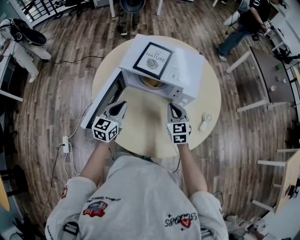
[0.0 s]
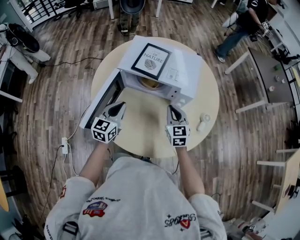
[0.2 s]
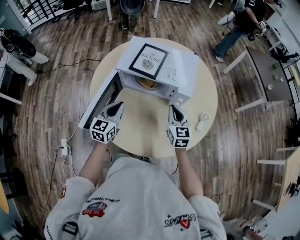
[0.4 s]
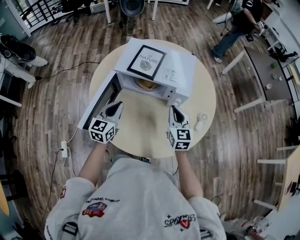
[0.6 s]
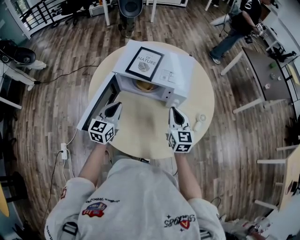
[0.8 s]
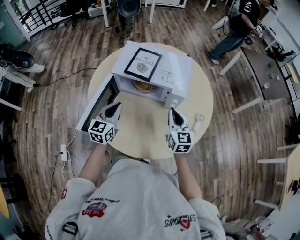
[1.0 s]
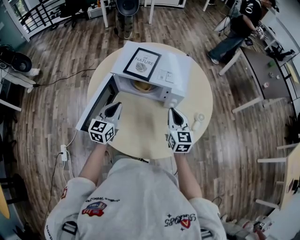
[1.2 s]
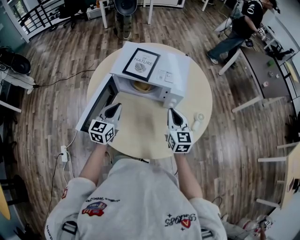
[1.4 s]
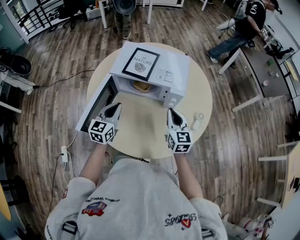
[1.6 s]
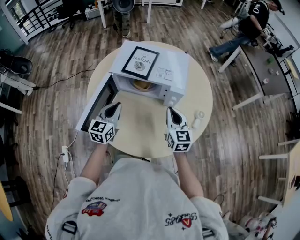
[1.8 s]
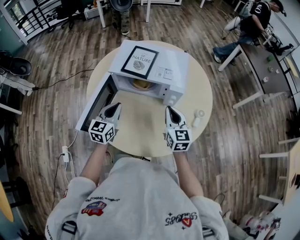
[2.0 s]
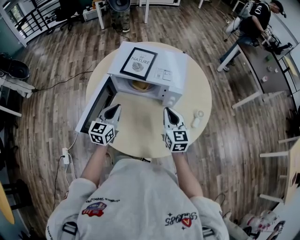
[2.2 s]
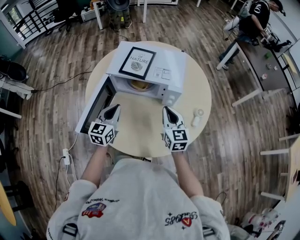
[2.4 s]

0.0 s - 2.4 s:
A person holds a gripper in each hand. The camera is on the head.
0.0 s - 1.2 s: The right gripper travels upward and to the right by about 10 cm.
1.2 s - 2.4 s: There are only small adjustments of the grippers.

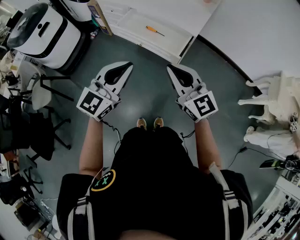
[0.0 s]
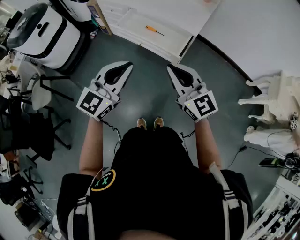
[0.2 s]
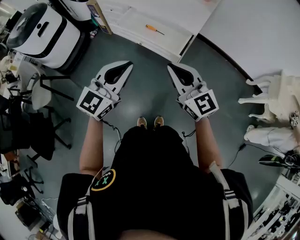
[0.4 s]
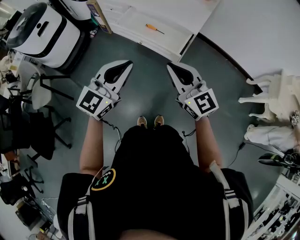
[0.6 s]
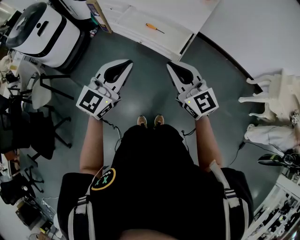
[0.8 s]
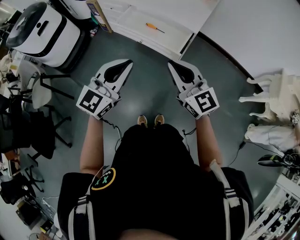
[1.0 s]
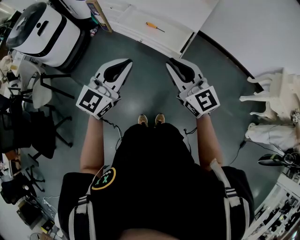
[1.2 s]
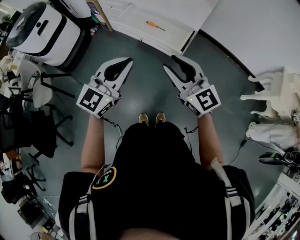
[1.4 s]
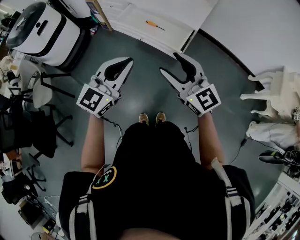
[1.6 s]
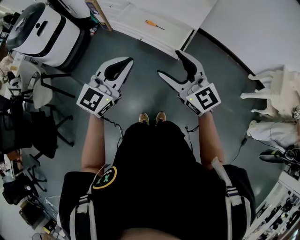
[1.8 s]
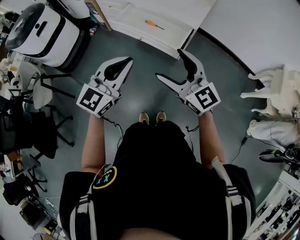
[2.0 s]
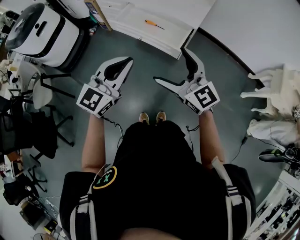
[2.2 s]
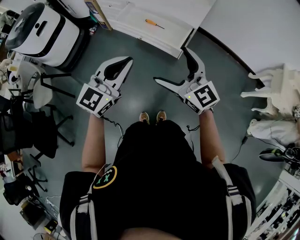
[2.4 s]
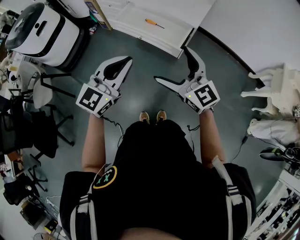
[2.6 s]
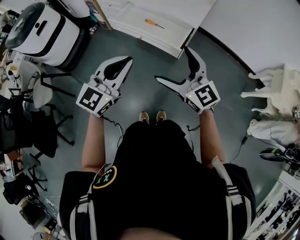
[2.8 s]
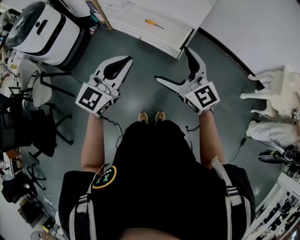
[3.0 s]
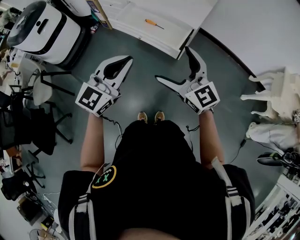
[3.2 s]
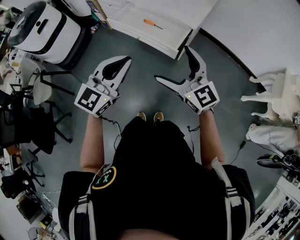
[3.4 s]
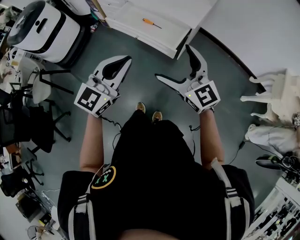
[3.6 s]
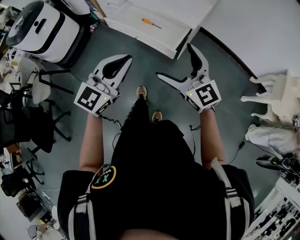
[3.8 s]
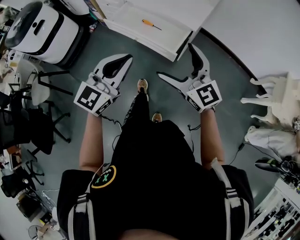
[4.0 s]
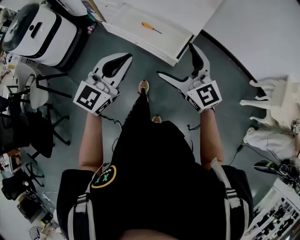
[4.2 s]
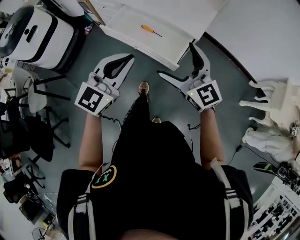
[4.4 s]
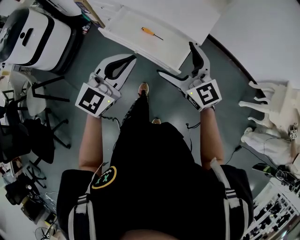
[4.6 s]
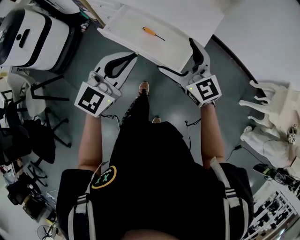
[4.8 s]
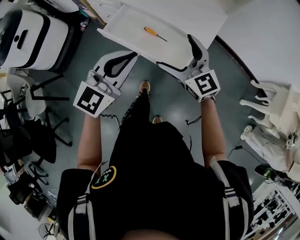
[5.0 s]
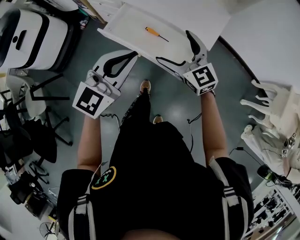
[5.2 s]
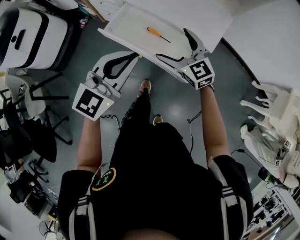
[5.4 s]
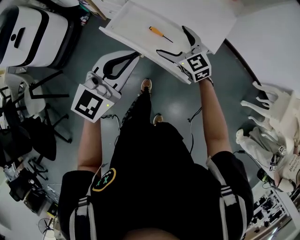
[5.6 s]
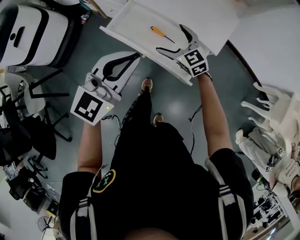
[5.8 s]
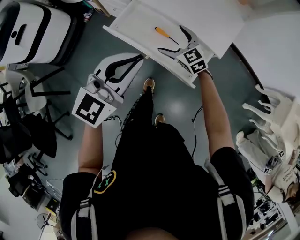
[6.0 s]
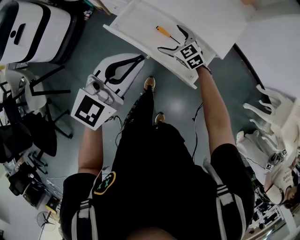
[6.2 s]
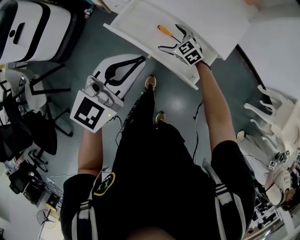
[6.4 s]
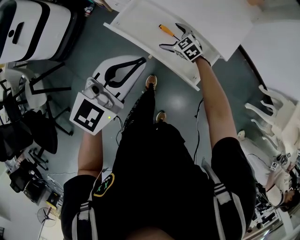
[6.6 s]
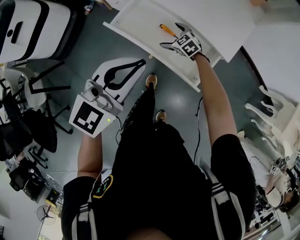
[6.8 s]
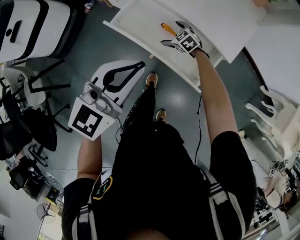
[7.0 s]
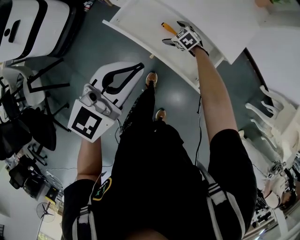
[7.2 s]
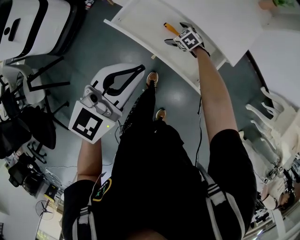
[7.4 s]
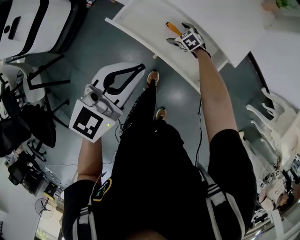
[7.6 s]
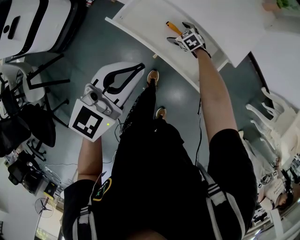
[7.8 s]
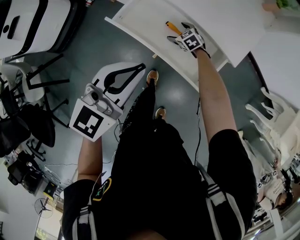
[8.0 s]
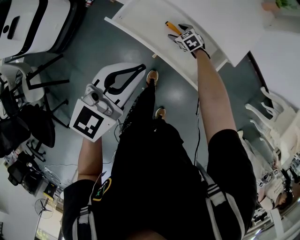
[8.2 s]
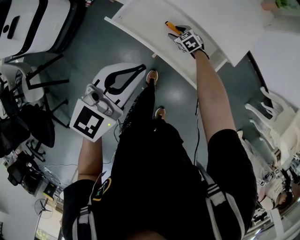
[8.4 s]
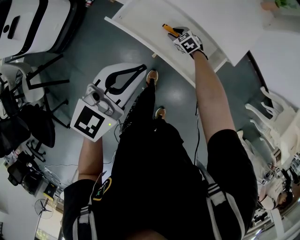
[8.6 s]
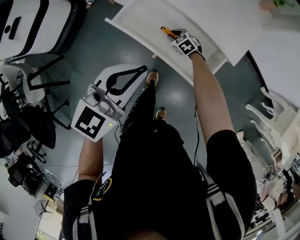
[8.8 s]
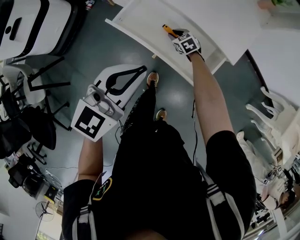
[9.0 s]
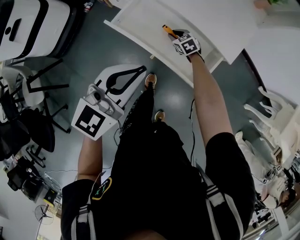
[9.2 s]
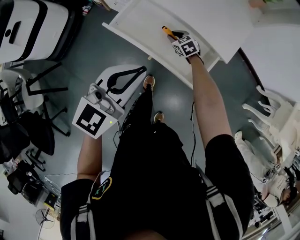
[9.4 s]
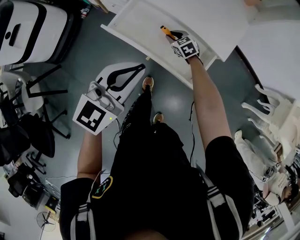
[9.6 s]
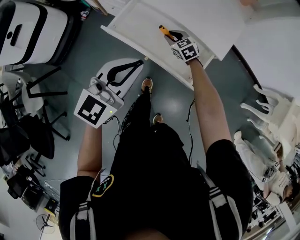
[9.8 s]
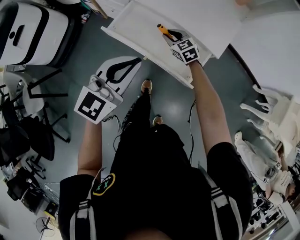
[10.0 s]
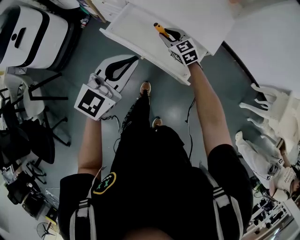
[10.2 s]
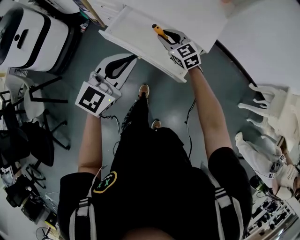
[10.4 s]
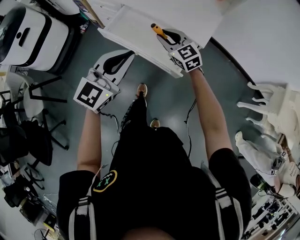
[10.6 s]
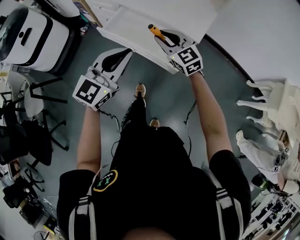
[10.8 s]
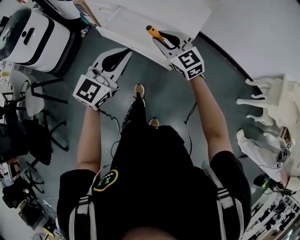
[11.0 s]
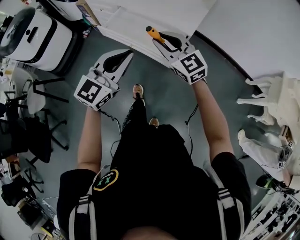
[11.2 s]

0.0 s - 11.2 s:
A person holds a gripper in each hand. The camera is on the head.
0.0 s - 1.6 s: The right gripper opens.
1.6 s - 3.2 s: The right gripper opens up.
3.2 s - 4.8 s: Both grippers move forward, about 25 cm.
4.8 s - 6.4 s: The right gripper heads downward and forward, covering some 35 cm, and points its fingers roughly 30 degrees further downward. Meanwhile the left gripper is displaced forward by about 10 cm.
6.4 s - 8.0 s: The right gripper is displaced downward by about 15 cm. The left gripper heads downward, covering some 5 cm.
8.0 s - 9.6 s: The right gripper moves upward, about 10 cm, and closes its fingers.
9.6 s - 11.2 s: The right gripper is displaced upward and backward by roughly 50 cm, and tips its fingers upward by some 40 degrees; the left gripper is displaced backward by some 20 cm.

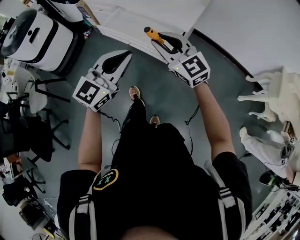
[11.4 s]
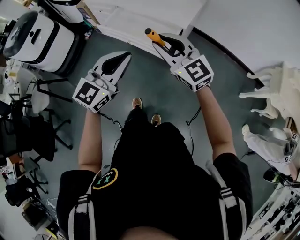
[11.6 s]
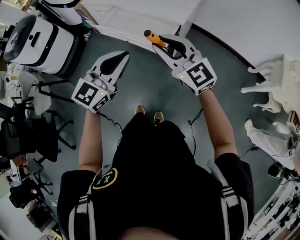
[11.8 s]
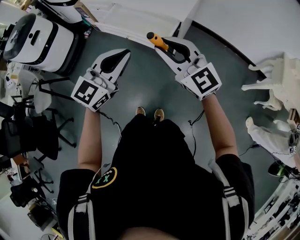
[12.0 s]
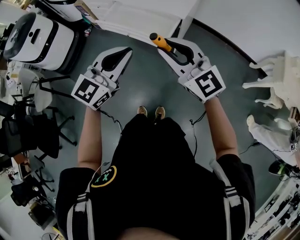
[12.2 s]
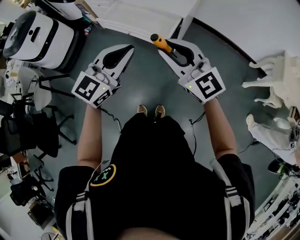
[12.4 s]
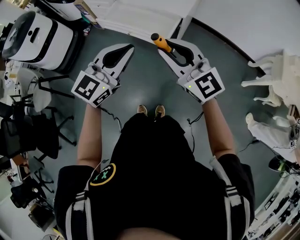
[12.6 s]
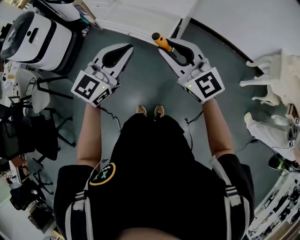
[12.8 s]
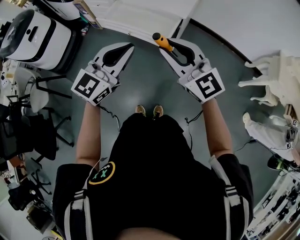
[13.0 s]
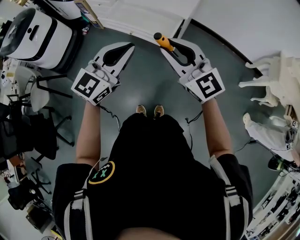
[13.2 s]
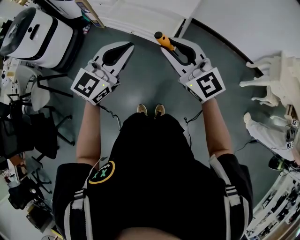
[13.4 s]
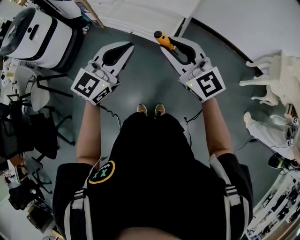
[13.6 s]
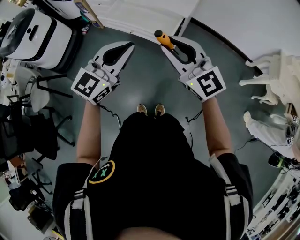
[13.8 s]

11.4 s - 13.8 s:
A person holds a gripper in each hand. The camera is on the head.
11.4 s - 12.6 s: The right gripper is displaced backward by about 15 cm. The left gripper shifts about 5 cm backward.
12.6 s - 13.8 s: The grippers stay close to where they were, moving slightly.

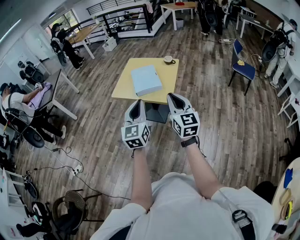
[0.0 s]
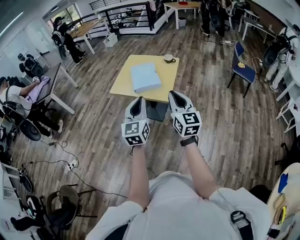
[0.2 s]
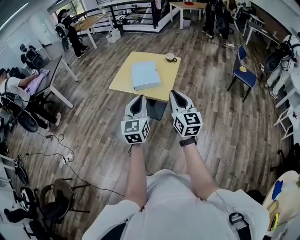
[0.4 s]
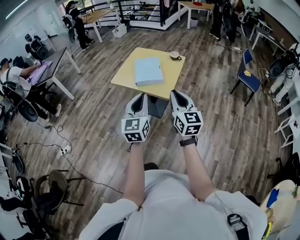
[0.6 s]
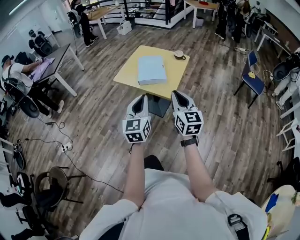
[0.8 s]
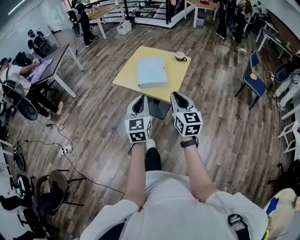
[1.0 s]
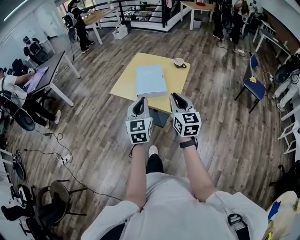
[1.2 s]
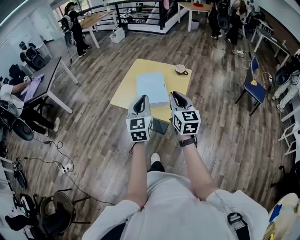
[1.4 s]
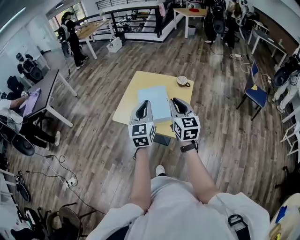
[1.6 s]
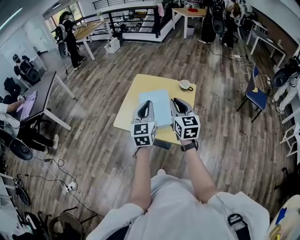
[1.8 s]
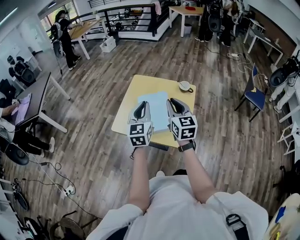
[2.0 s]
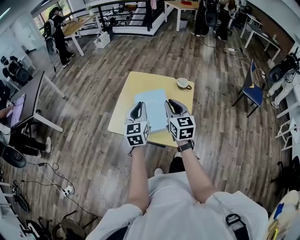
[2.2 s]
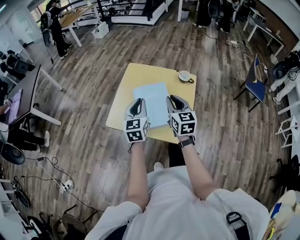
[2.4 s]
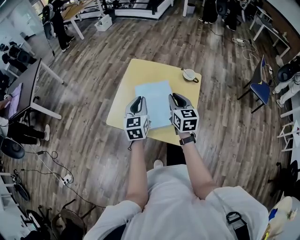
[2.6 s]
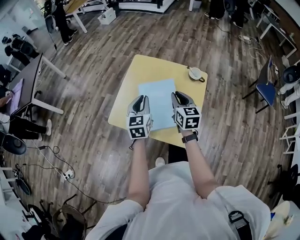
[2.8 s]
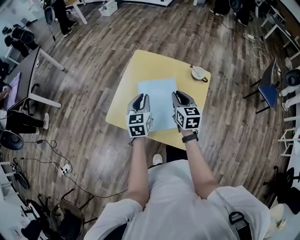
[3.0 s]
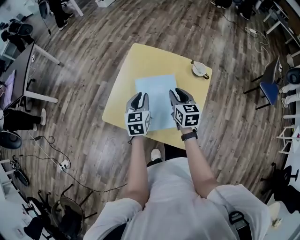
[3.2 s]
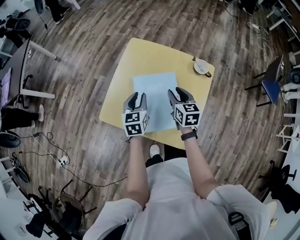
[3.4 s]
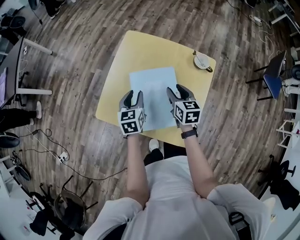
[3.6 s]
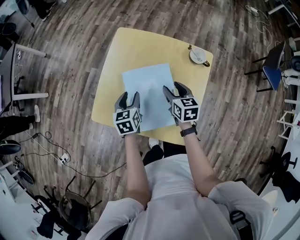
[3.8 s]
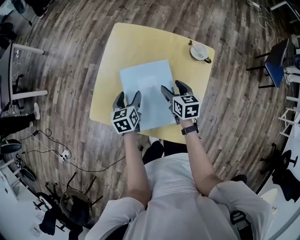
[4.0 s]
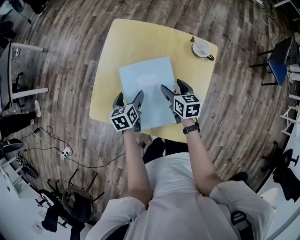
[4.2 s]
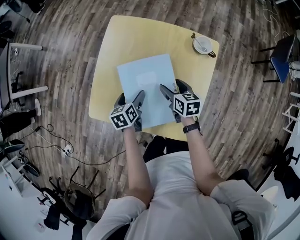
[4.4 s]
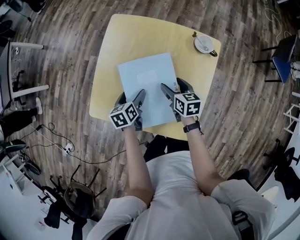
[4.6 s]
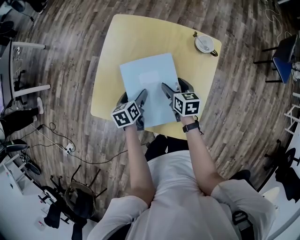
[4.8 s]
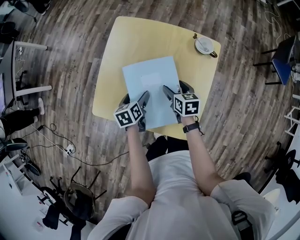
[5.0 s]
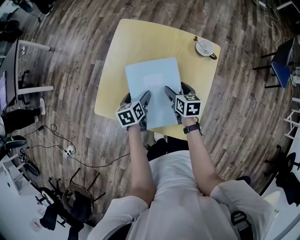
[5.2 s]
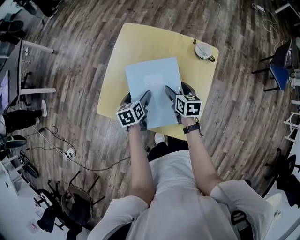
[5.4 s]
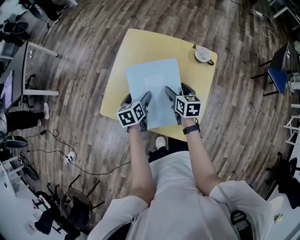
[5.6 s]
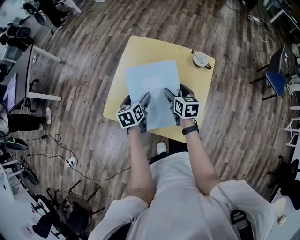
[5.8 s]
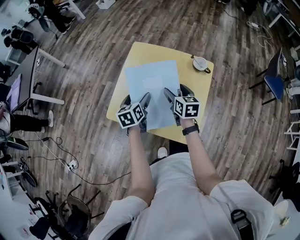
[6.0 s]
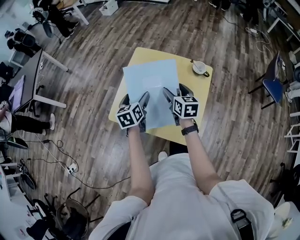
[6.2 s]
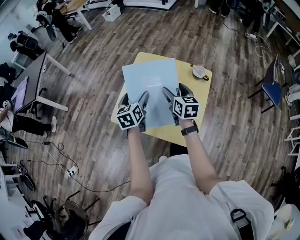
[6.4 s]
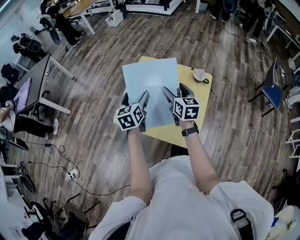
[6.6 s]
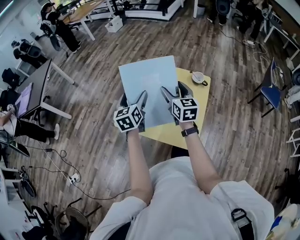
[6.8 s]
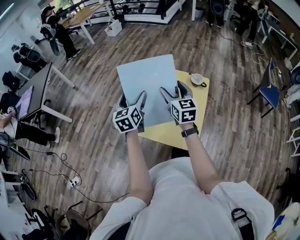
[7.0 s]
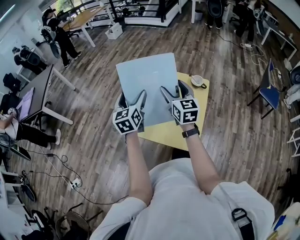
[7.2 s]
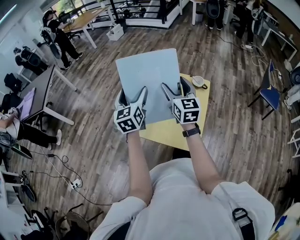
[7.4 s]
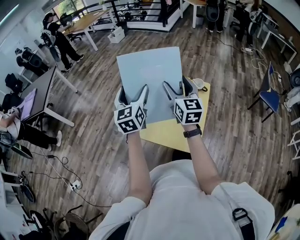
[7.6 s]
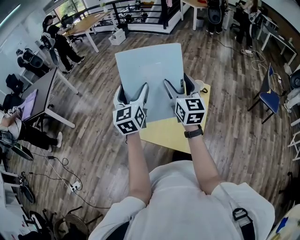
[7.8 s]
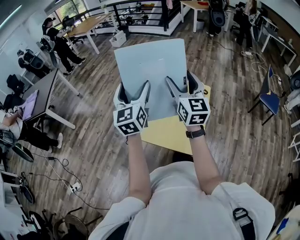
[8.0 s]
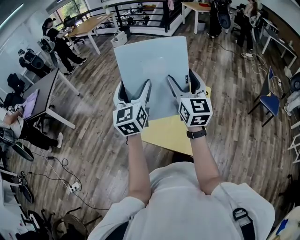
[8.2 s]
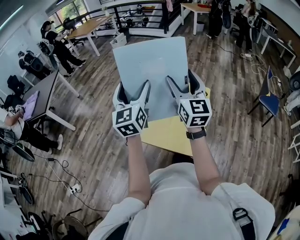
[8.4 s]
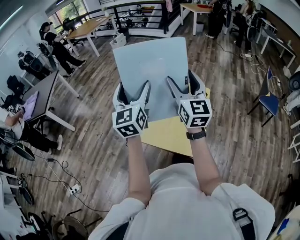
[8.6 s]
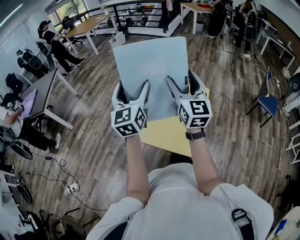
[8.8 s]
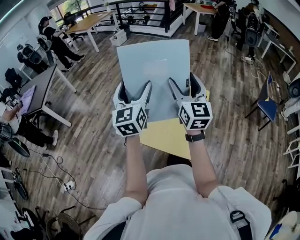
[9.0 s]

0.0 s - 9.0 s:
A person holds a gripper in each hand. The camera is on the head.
0.0 s - 1.6 s: The two grippers go approximately 30 cm forward.
1.6 s - 3.0 s: Both grippers move forward and downward, approximately 30 cm. The right gripper changes its angle by about 20 degrees. Meanwhile the left gripper rotates approximately 20 degrees.
3.0 s - 4.4 s: The grippers both shift downward by approximately 20 cm. The right gripper swivels approximately 30 degrees, and opens its fingers, while the left gripper turns by approximately 40 degrees, and opens its fingers.
4.4 s - 6.0 s: Both grippers travel together upward, approximately 15 cm.
6.0 s - 7.6 s: Both grippers move upward, roughly 25 cm. The right gripper rotates about 30 degrees; the left gripper tips its fingers upward by some 30 degrees.
7.6 s - 9.0 s: The two grippers go about 5 cm upward.
